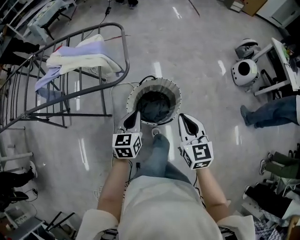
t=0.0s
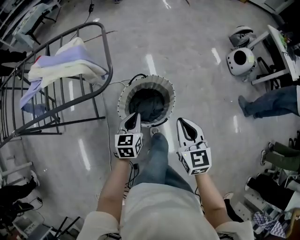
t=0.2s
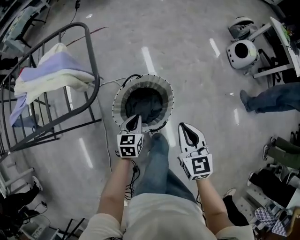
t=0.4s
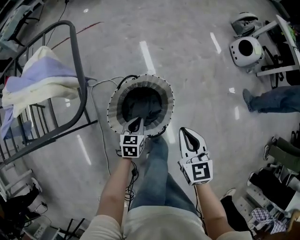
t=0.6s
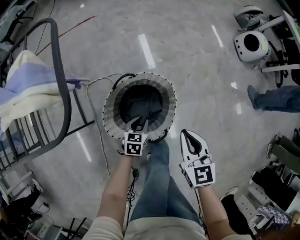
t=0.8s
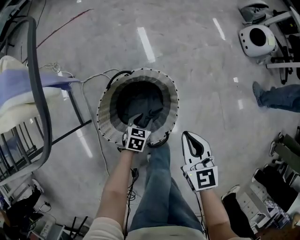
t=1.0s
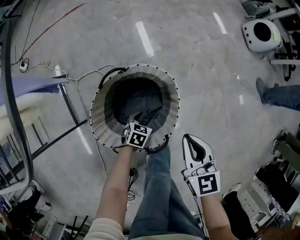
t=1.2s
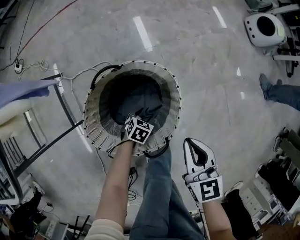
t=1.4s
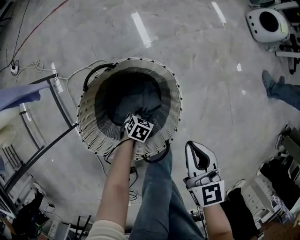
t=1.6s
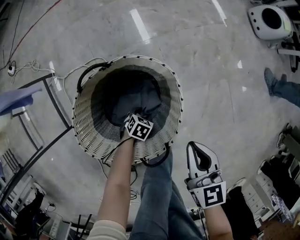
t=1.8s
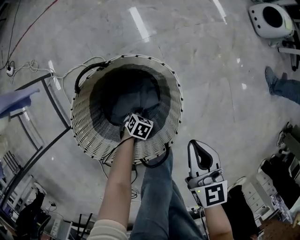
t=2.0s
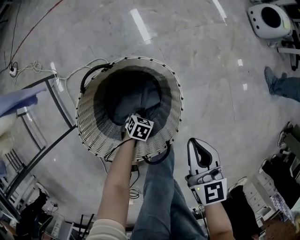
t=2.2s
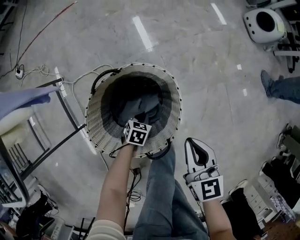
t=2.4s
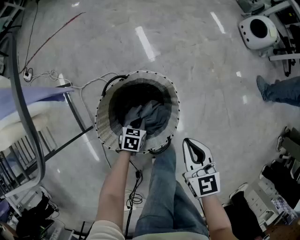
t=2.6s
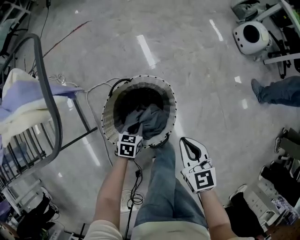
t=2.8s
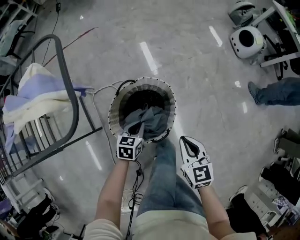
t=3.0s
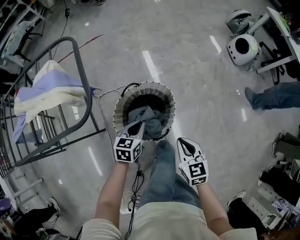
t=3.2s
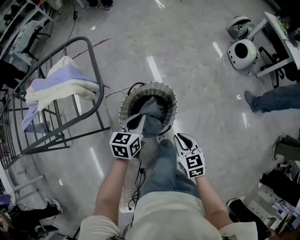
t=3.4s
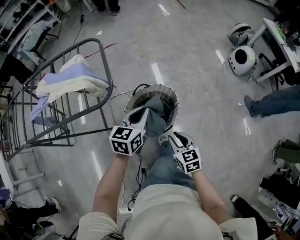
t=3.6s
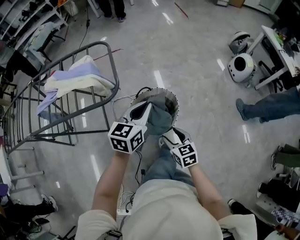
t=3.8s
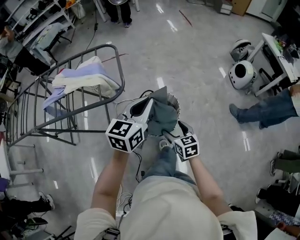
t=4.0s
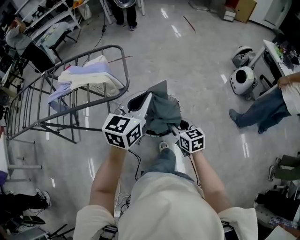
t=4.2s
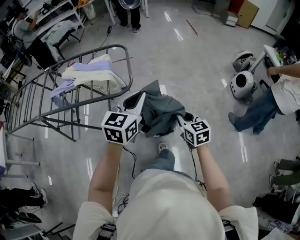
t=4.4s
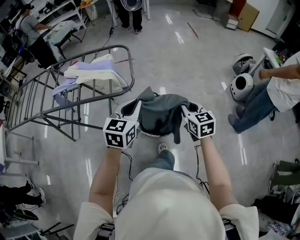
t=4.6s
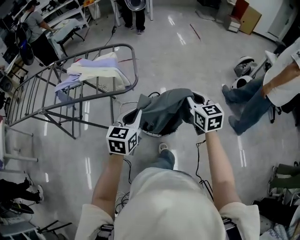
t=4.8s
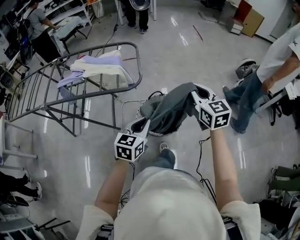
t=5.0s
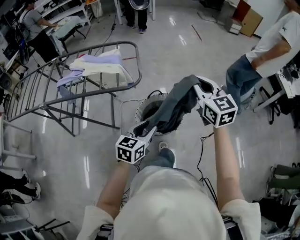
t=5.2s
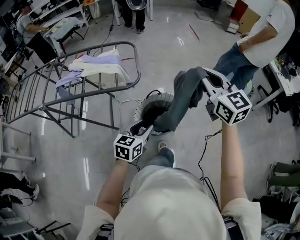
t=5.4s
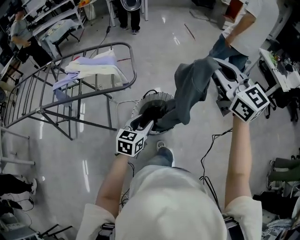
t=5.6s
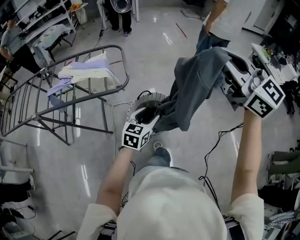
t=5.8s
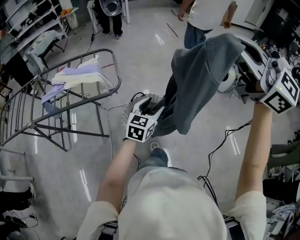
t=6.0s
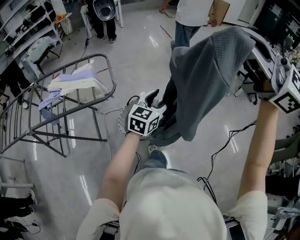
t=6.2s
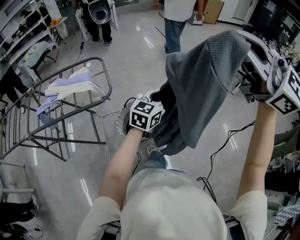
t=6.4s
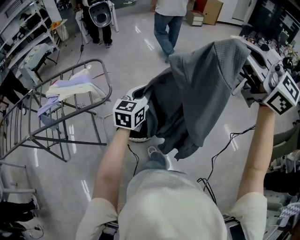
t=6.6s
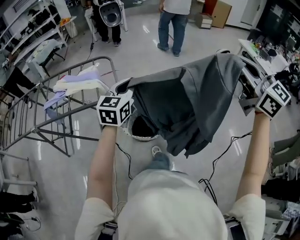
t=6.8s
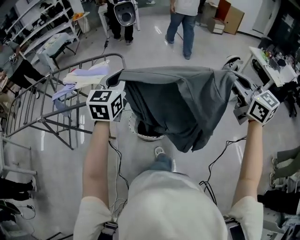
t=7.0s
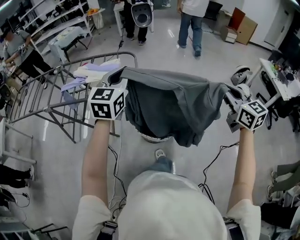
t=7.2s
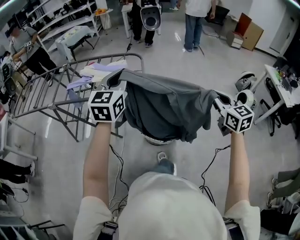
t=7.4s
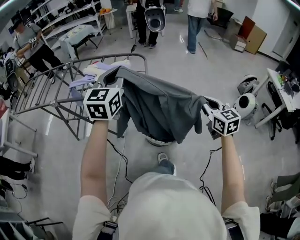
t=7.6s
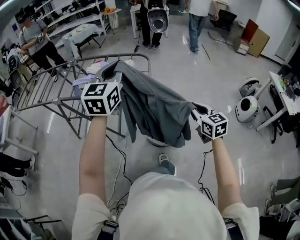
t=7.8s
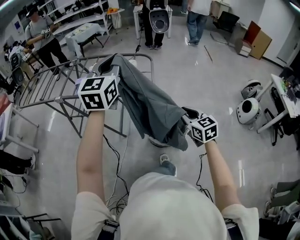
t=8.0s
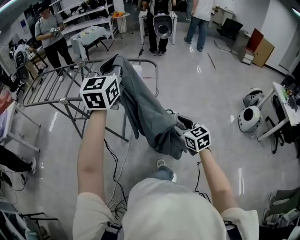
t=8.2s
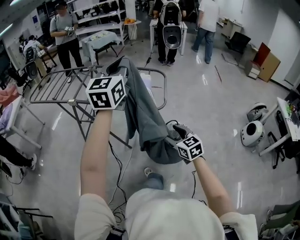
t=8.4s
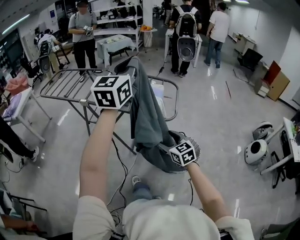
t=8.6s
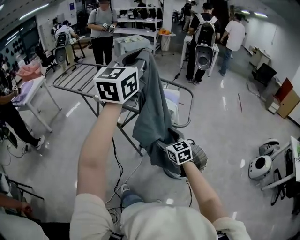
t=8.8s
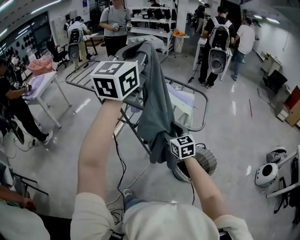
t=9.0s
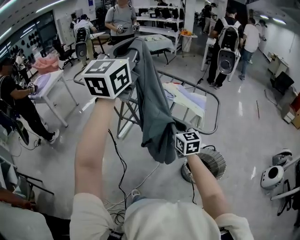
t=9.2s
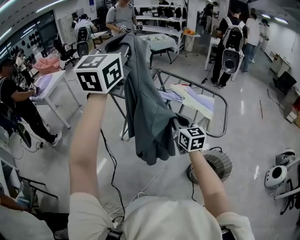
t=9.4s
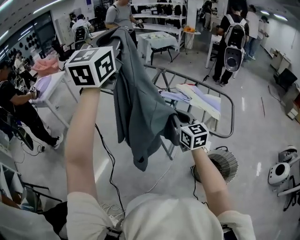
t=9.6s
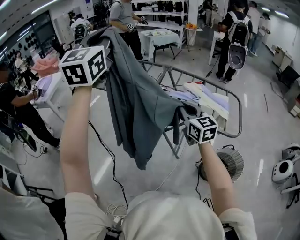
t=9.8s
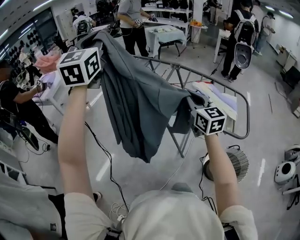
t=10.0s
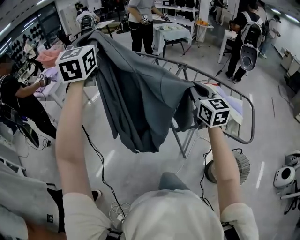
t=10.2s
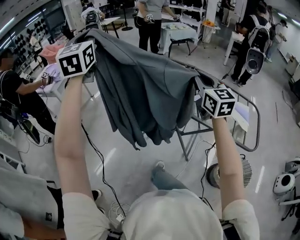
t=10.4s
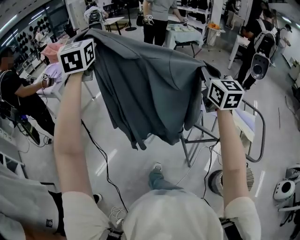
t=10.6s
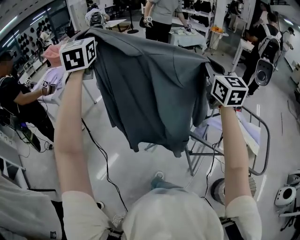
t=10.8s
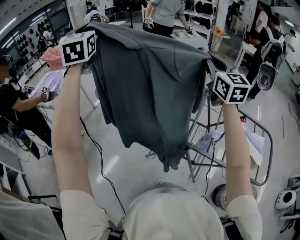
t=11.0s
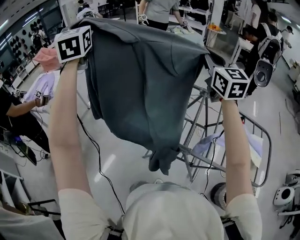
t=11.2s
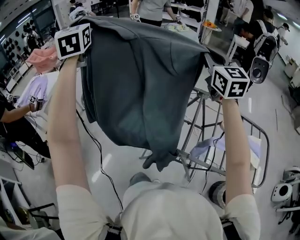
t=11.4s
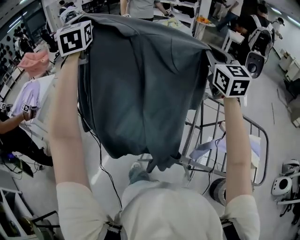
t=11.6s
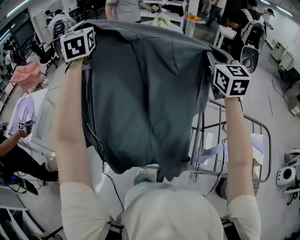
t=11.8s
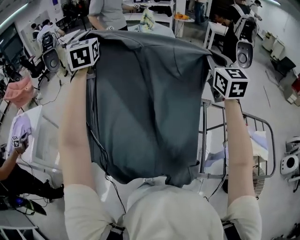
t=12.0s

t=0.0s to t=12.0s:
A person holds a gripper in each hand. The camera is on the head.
t=0.0s to t=1.6s: The right gripper heads downward, covering approximately 35 cm, and swivels about 20 degrees, while the left gripper shifts approximately 60 cm downward, tilts its fingers about 40 degrees downward, and opens up.
t=1.6s to t=3.0s: The left gripper moves upward, some 30 cm, rotates about 30 degrees, and closes; the right gripper goes roughly 15 cm upward.
t=3.0s to t=4.4s: The right gripper is displaced upward by some 20 cm, and opens, then closes again. Meanwhile the left gripper shifts about 50 cm upward, and tilts its fingers roughly 30 degrees upward.
t=4.4s to t=6.0s: The right gripper travels upward by some 50 cm, and angles its fingers upward, by some 30 degrees. The left gripper moves to the right, downward and backward, approximately 15 cm, and opens.
t=6.0s to t=7.6s: The right gripper moves downward, approximately 30 cm, and turns by about 30 degrees, while the left gripper is displaced to the left and upward by some 30 cm, rotates roughly 40 degrees, and closes up.
t=7.6s to t=9.0s: The left gripper shifts roughly 35 cm to the left and upward, and changes its angle by some 20 degrees; the right gripper heads to the left, covering some 40 cm, swivels about 30 degrees, and opens its fingers.
t=9.0s to t=10.4s: The right gripper goes some 40 cm forward, to the left and upward, and closes its fingers. The left gripper moves to the left and forward, about 60 cm, and changes its angle by some 40 degrees.
t=10.4s to t=12.0s: The two grippers travel together, forward, approximately 50 cm. The right gripper rotates approximately 30 degrees.

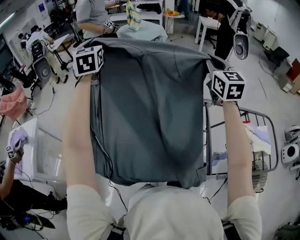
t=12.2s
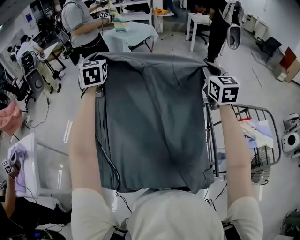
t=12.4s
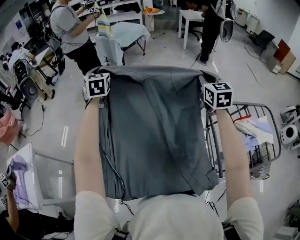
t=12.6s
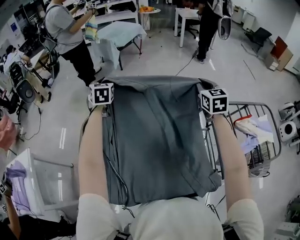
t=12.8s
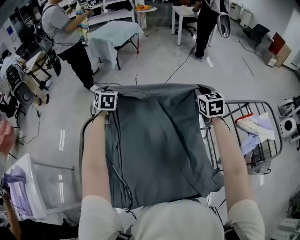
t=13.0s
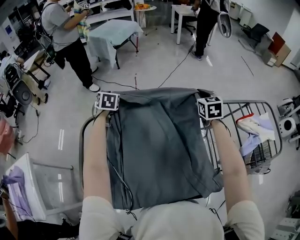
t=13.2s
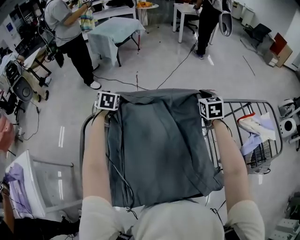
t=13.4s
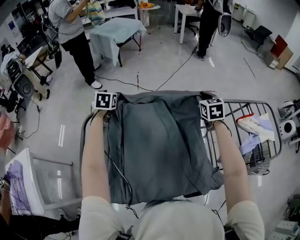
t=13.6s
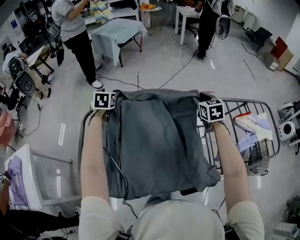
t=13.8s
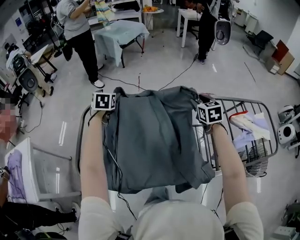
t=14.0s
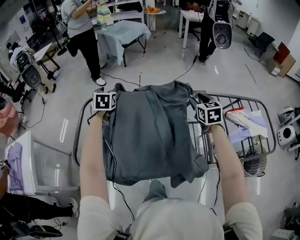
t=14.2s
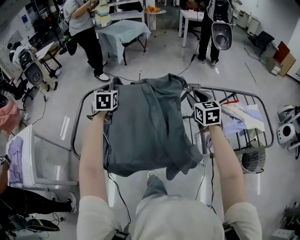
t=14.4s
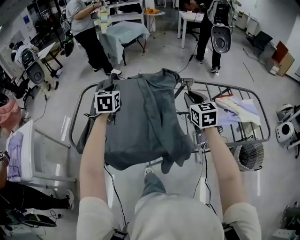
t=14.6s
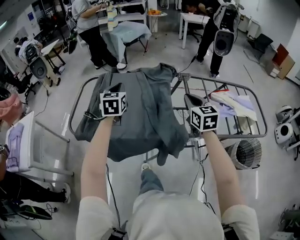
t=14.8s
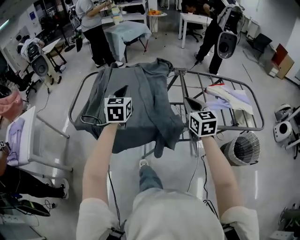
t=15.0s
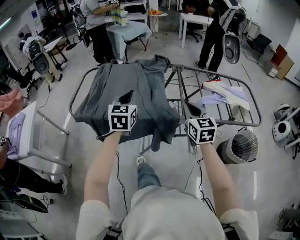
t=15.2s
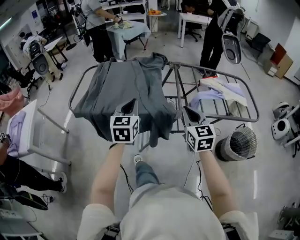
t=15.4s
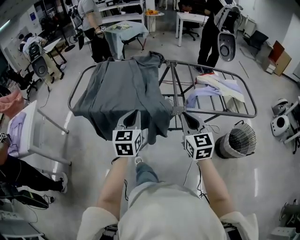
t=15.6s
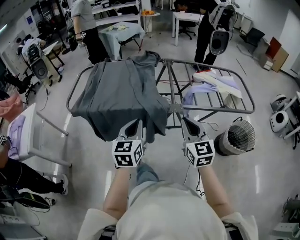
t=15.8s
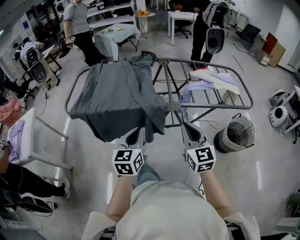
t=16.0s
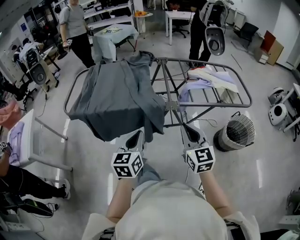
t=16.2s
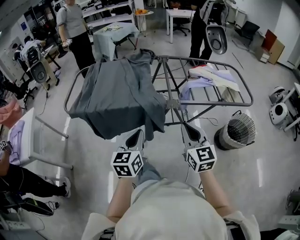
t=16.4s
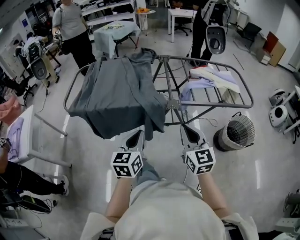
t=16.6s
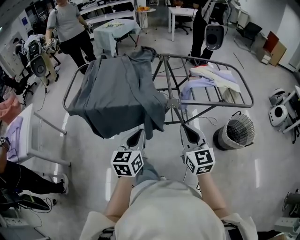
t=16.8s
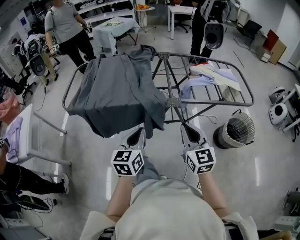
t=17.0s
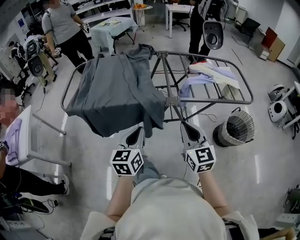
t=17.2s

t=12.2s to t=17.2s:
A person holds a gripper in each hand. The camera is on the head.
t=12.2s to t=13.8s: Both grippers travel together downward, roughly 30 cm. The left gripper points its fingers about 40 degrees further downward, and opens up. The right gripper points its fingers approximately 30 degrees further downward, and opens its fingers.
t=13.8s to t=15.6s: The two grippers travel together, backward, roughly 60 cm. The right gripper turns by approximately 20 degrees, and closes. The left gripper rotates about 30 degrees, and closes up.
t=15.6s to t=17.2s: The two grippers go about 10 cm backward.

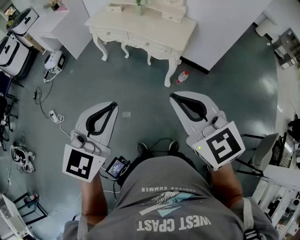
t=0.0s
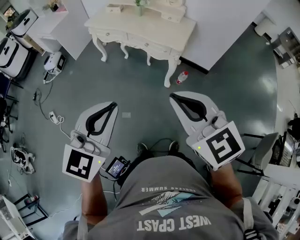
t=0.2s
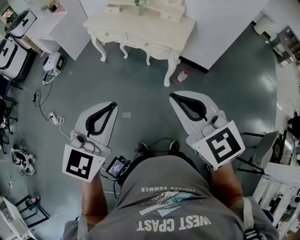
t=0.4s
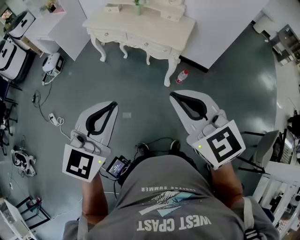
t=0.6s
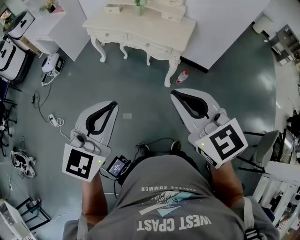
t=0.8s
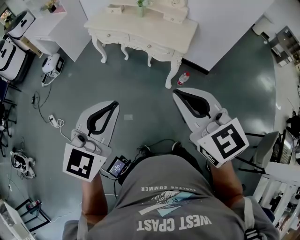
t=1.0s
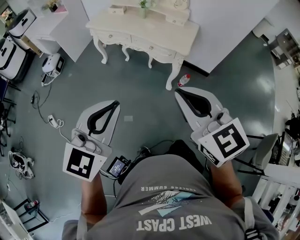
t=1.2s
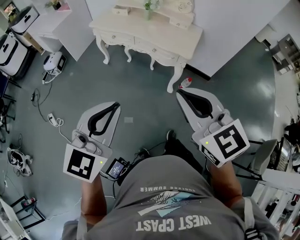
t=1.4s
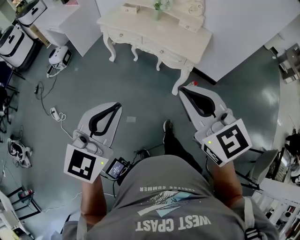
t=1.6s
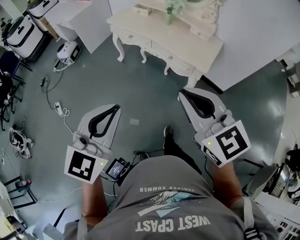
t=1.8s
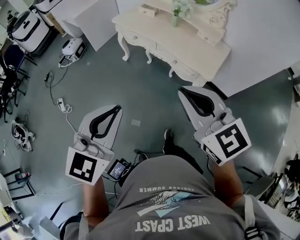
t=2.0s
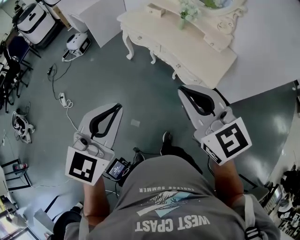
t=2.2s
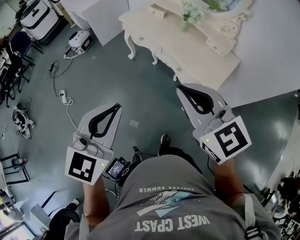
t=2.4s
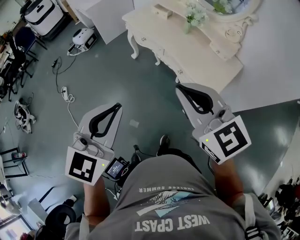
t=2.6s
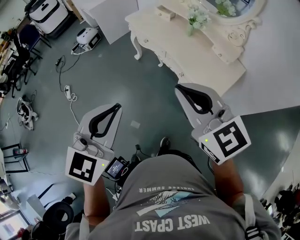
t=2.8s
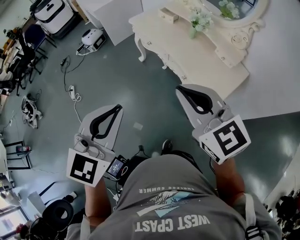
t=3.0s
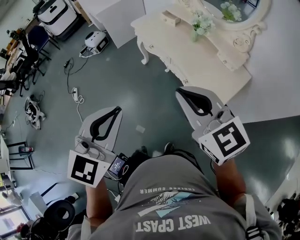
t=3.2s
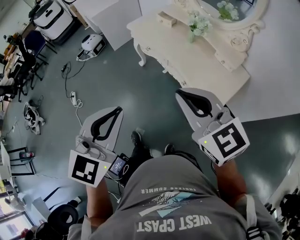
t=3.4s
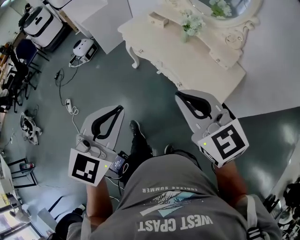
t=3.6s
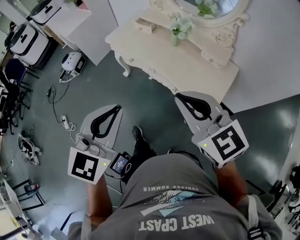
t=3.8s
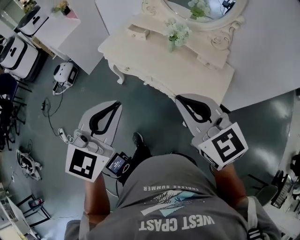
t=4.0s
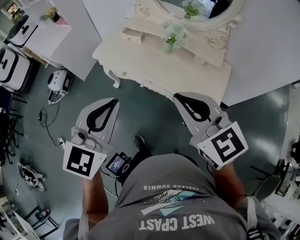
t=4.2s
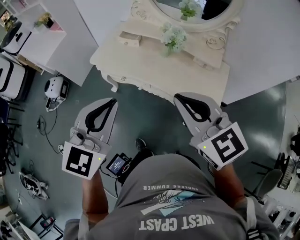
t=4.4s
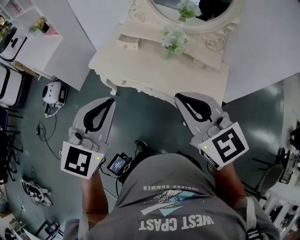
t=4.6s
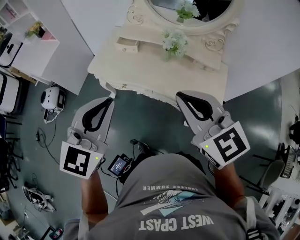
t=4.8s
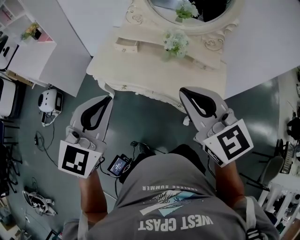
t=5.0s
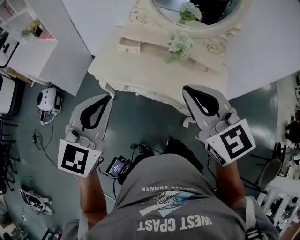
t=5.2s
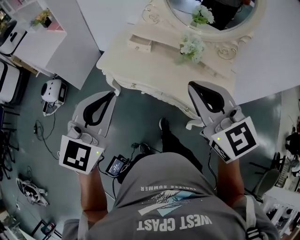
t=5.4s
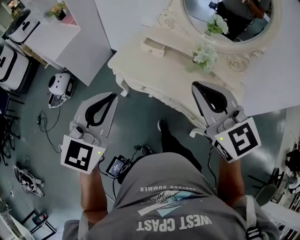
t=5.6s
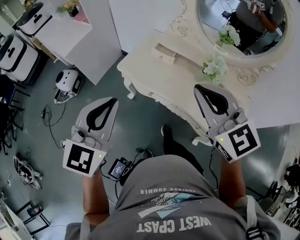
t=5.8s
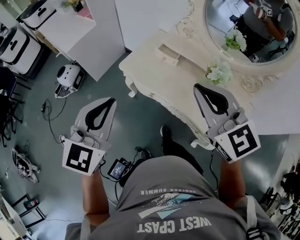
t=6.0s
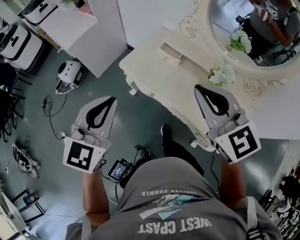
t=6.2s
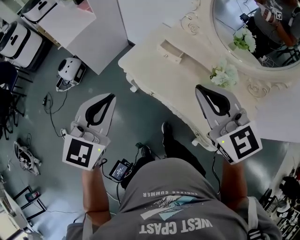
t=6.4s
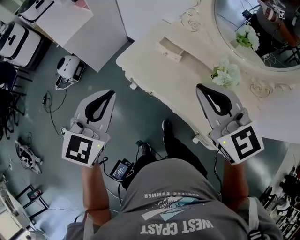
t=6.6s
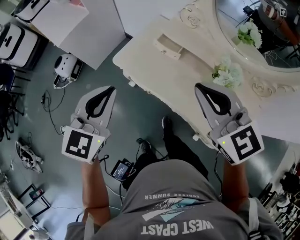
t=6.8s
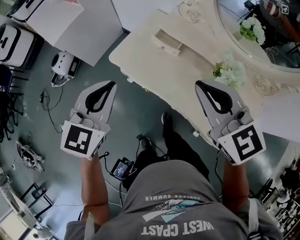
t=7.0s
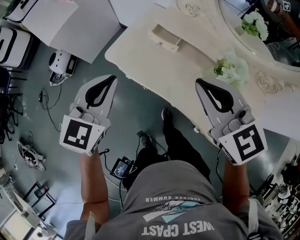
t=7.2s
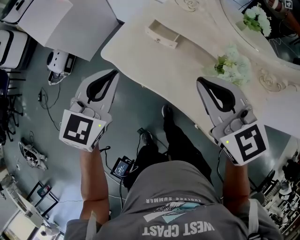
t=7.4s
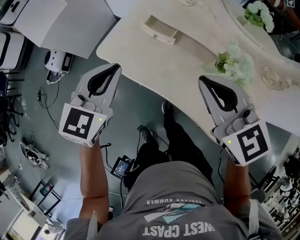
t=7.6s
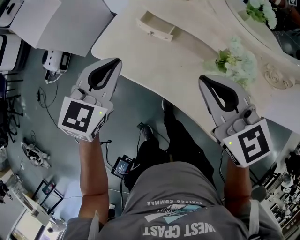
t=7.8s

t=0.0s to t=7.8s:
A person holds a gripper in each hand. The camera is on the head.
t=0.0s to t=1.6s: The left gripper travels to the left and forward by about 10 cm, while the right gripper shifts roughly 10 cm forward and to the left.
t=1.6s to t=3.2s: The left gripper moves some 20 cm, and changes its angle by some 30 degrees, while the right gripper ends up some 25 cm from where it was, and swivels roughly 30 degrees.
t=3.2s to t=4.6s: The right gripper ends up approximately 25 cm from where it was, and rotates approximately 30 degrees; the left gripper ends up some 35 cm from where it was, and swivels some 30 degrees.
t=4.6s to t=6.2s: The right gripper moves forward and to the left, some 20 cm, while the left gripper goes some 20 cm to the left and forward.
t=6.2s to t=7.8s: The right gripper travels downward, forward and to the right by approximately 20 cm. Meanwhile the left gripper travels forward, downward and to the right by approximately 30 cm.
